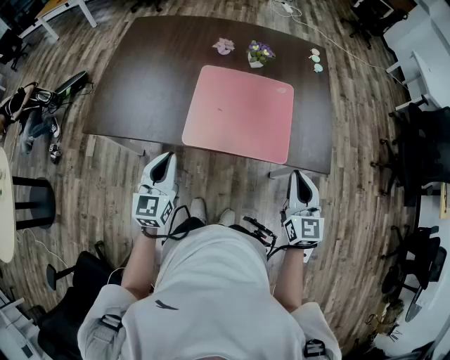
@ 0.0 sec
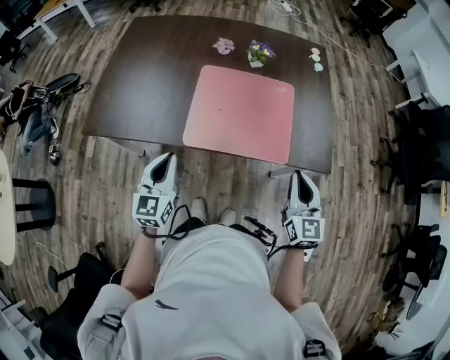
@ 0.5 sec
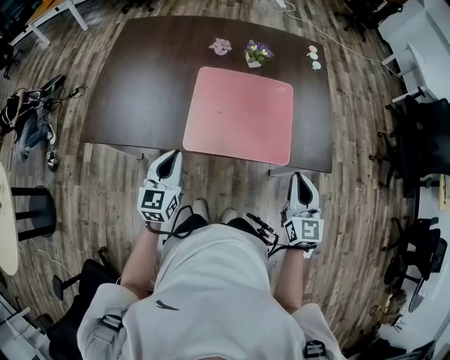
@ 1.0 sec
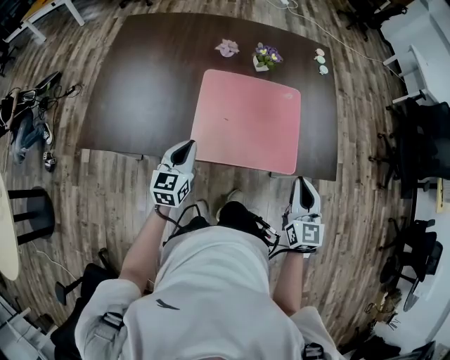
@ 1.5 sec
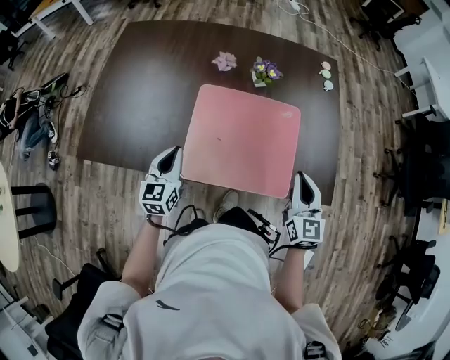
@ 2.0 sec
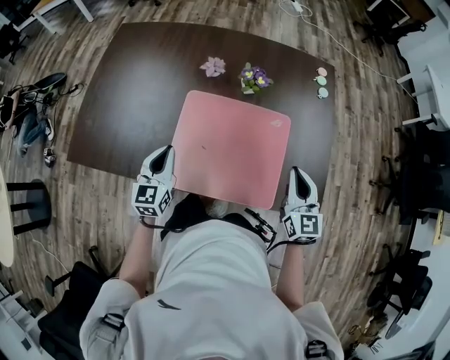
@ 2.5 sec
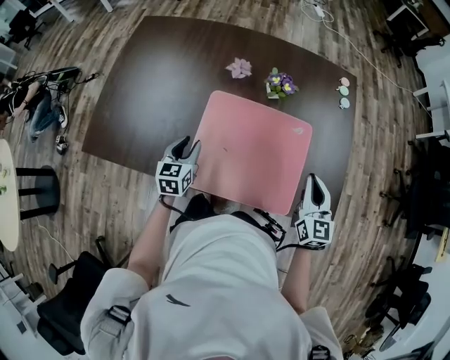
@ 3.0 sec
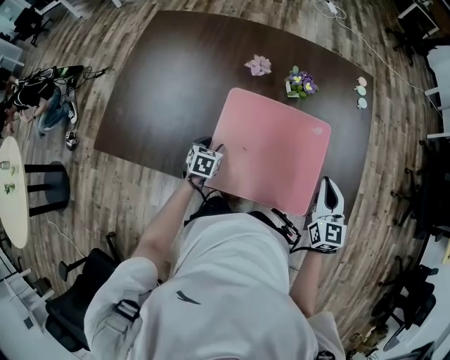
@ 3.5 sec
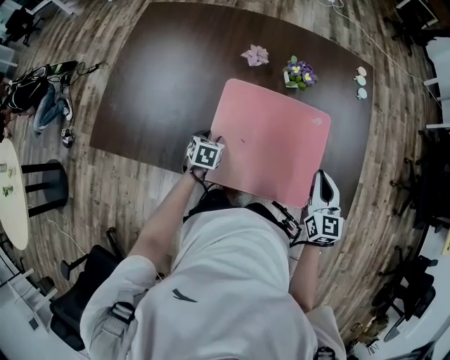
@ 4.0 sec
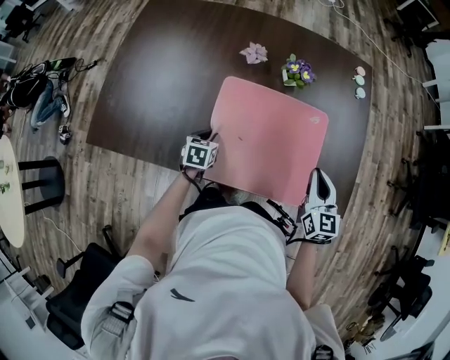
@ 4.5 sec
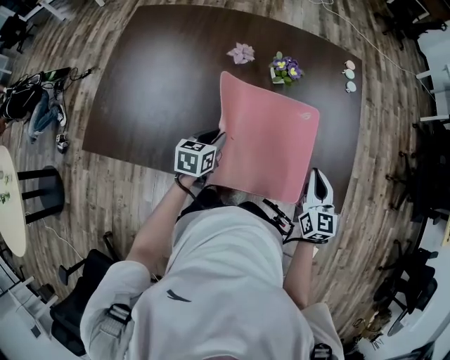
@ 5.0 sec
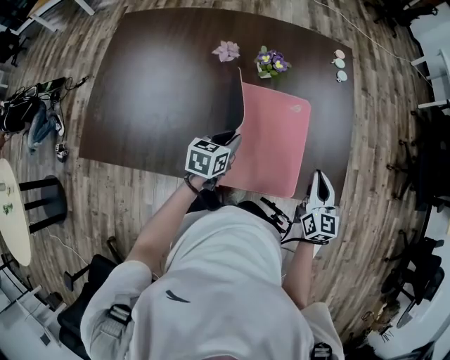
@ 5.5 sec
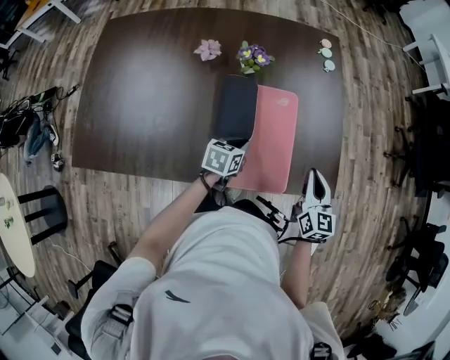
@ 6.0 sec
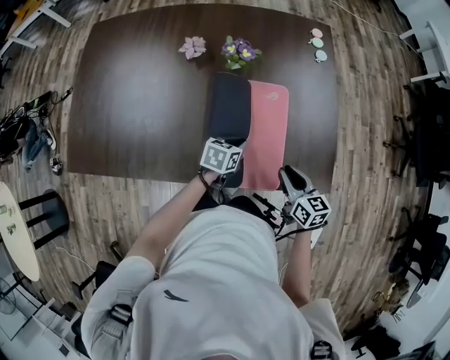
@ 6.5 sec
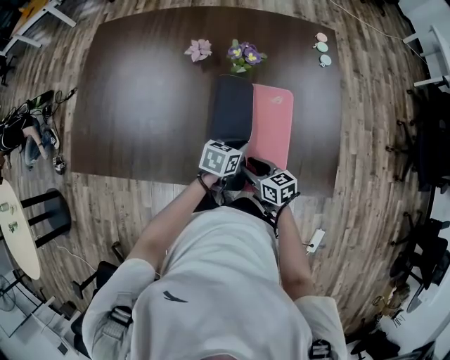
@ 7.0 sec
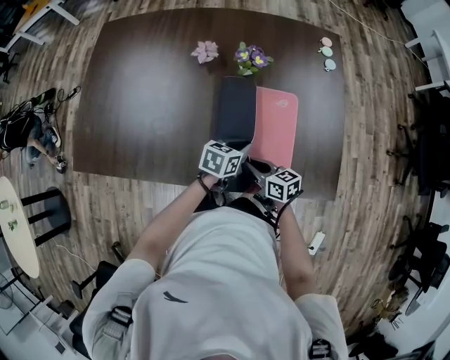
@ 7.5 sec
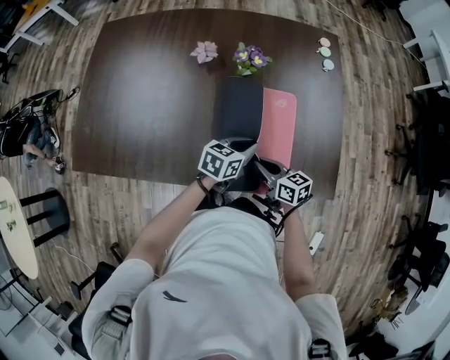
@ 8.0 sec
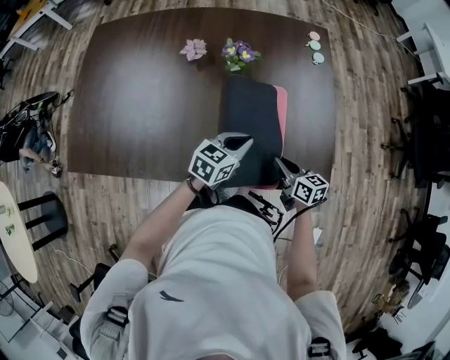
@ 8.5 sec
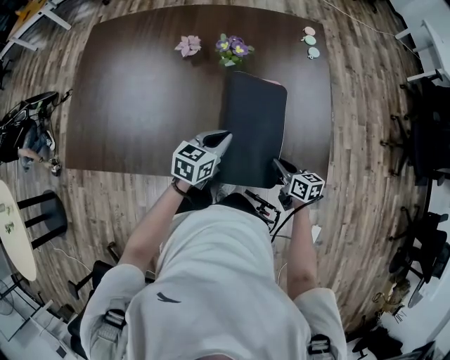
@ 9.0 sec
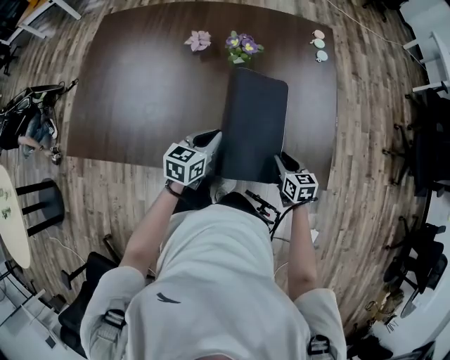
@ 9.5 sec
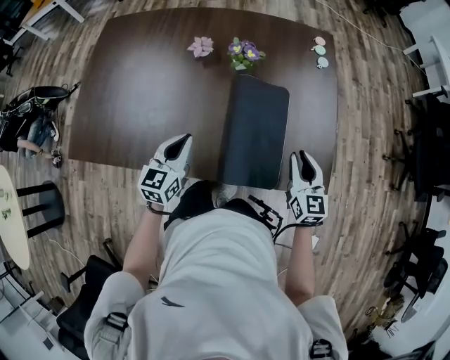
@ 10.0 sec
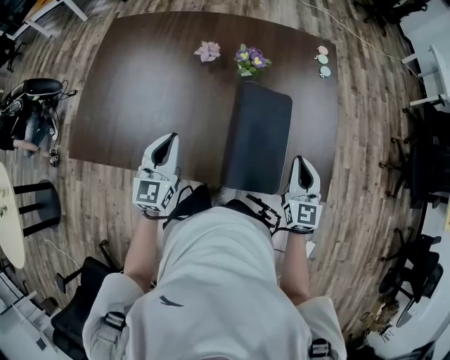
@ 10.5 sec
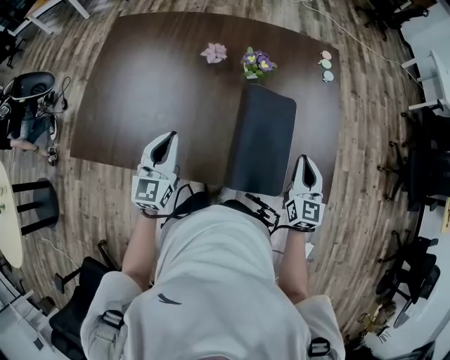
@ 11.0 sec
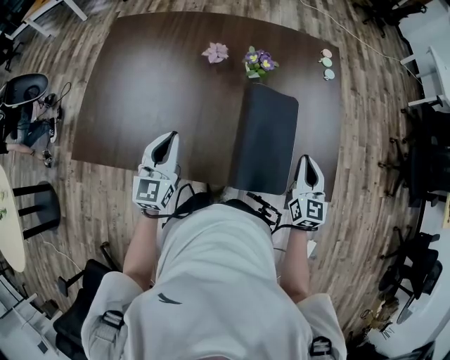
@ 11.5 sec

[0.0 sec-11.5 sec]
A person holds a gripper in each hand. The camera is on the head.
0.0 sec to 2.0 sec: The left gripper moves forward and downward, some 20 cm; the right gripper heads forward, covering approximately 15 cm.
2.0 sec to 4.0 sec: The right gripper travels forward by approximately 5 cm. The left gripper travels downward and forward by approximately 20 cm, angles its fingers downward, by some 40 degrees, and opens.
4.0 sec to 6.0 sec: The right gripper travels to the right by about 10 cm, while the left gripper travels to the right by approximately 25 cm, changes its angle by some 30 degrees, and closes up.
6.0 sec to 7.5 sec: The right gripper goes about 25 cm to the left and downward, changes its angle by roughly 50 degrees, and opens, then closes once more.
7.5 sec to 9.5 sec: The left gripper moves upward and to the left, approximately 10 cm, while the right gripper shifts some 15 cm to the right, and swivels about 30 degrees.
9.5 sec to 11.5 sec: The left gripper goes approximately 20 cm to the left and upward, and swivels approximately 40 degrees. Meanwhile the right gripper moves upward, about 15 cm, changes its angle by some 40 degrees, and closes.

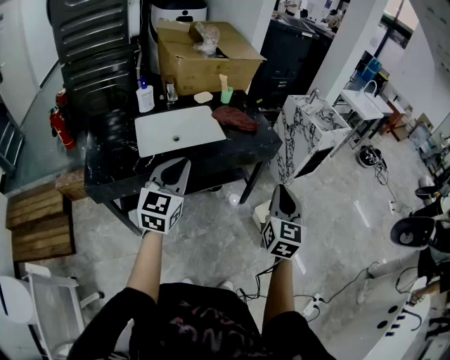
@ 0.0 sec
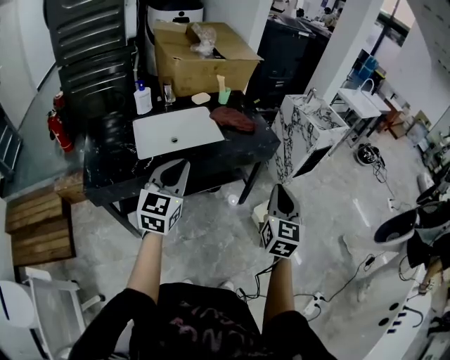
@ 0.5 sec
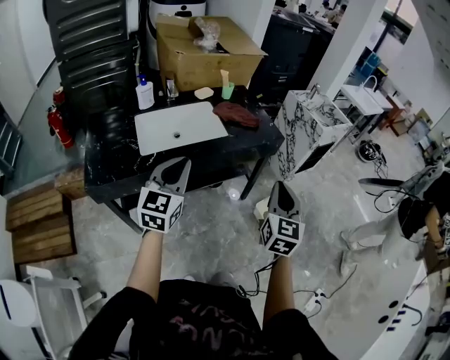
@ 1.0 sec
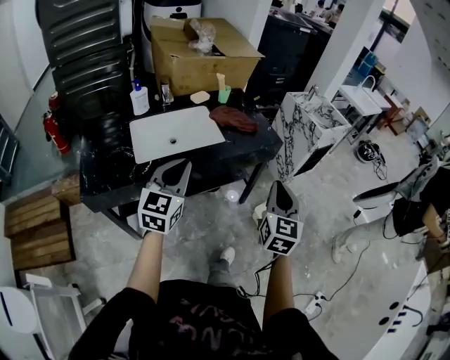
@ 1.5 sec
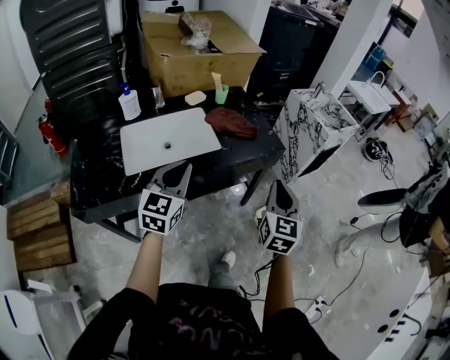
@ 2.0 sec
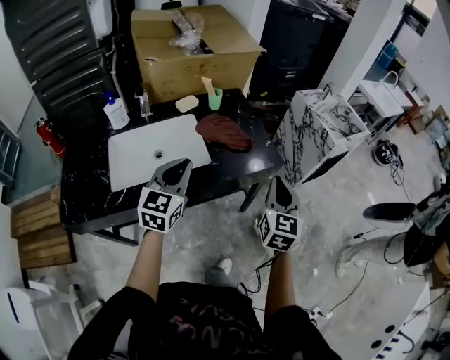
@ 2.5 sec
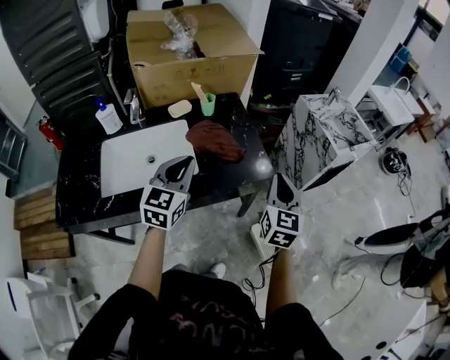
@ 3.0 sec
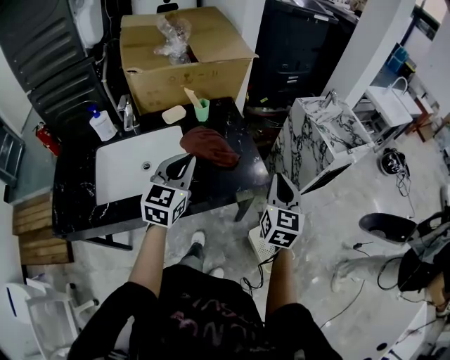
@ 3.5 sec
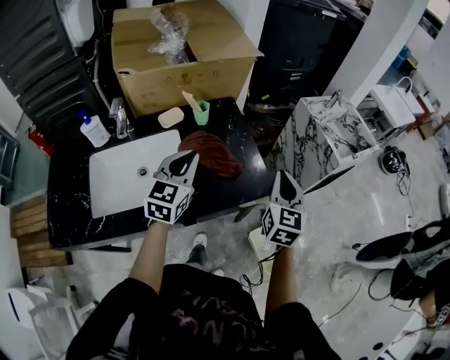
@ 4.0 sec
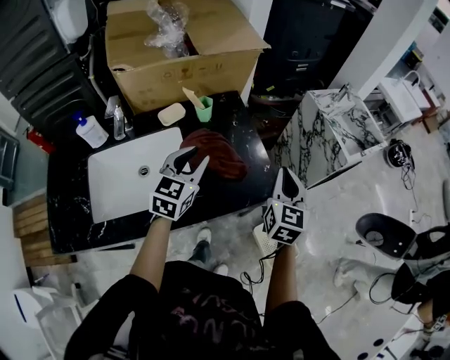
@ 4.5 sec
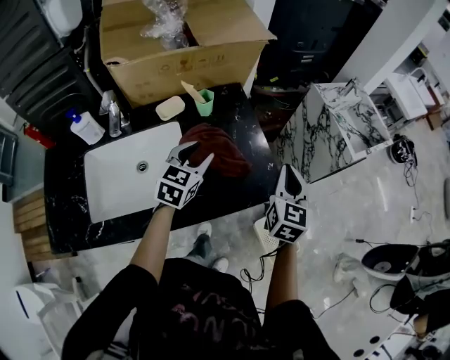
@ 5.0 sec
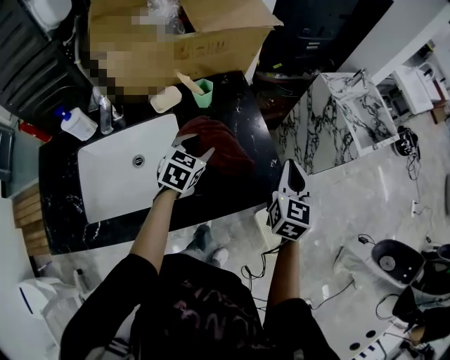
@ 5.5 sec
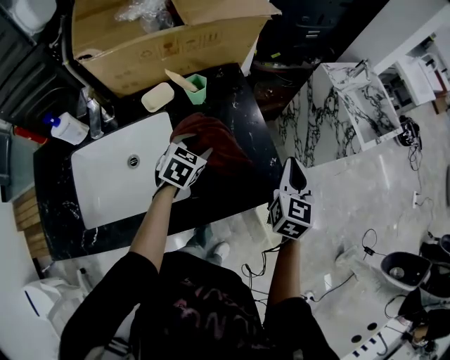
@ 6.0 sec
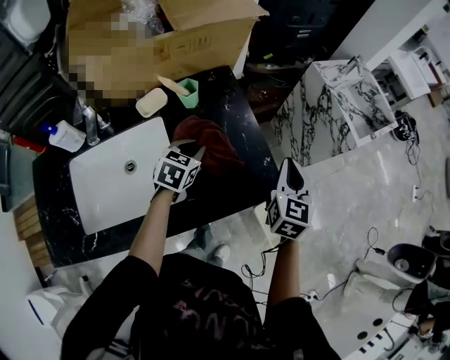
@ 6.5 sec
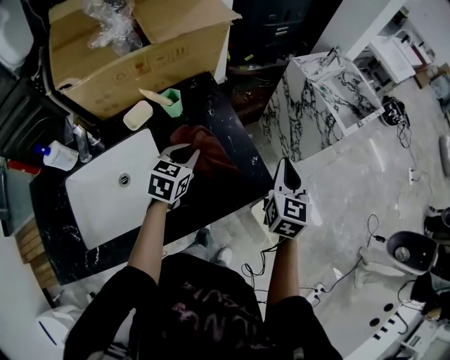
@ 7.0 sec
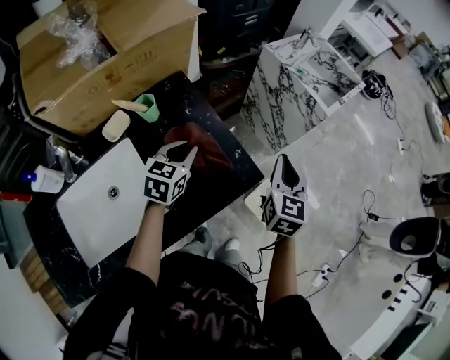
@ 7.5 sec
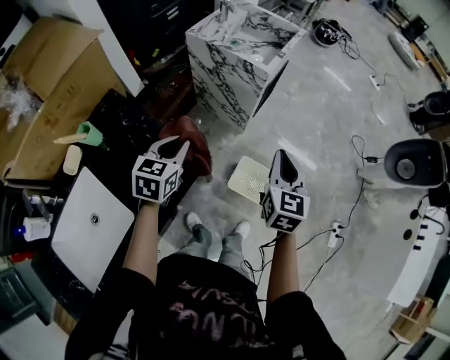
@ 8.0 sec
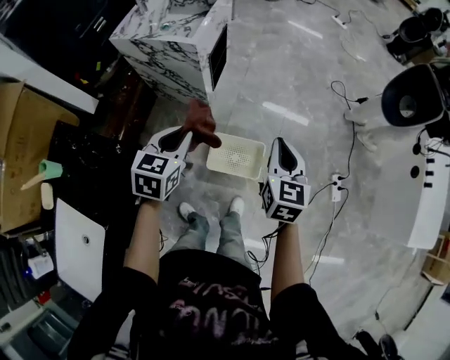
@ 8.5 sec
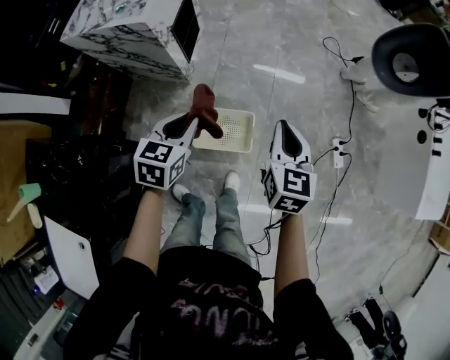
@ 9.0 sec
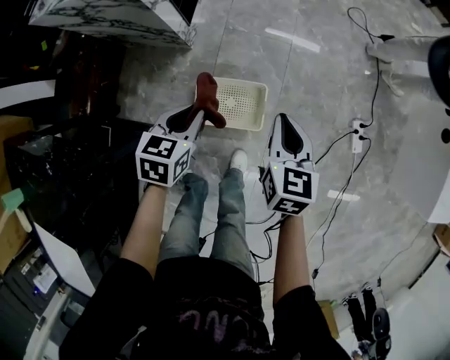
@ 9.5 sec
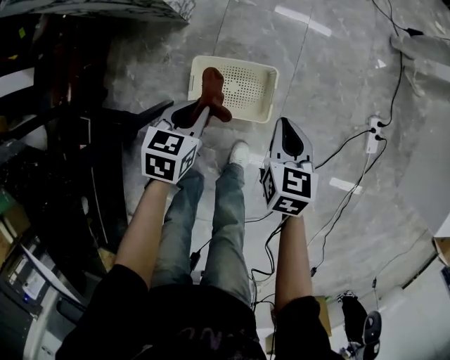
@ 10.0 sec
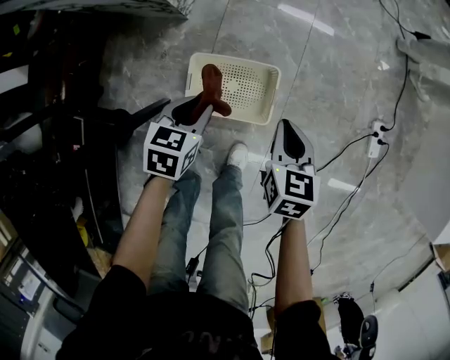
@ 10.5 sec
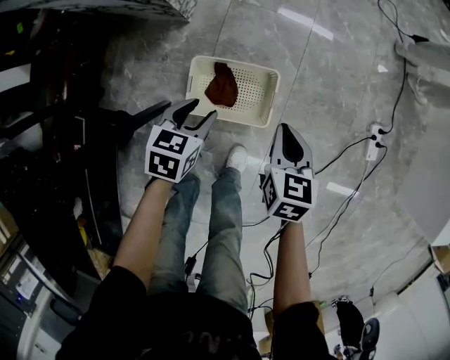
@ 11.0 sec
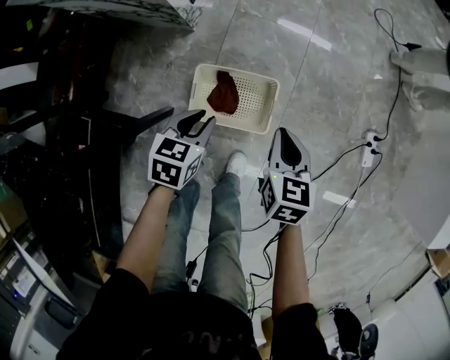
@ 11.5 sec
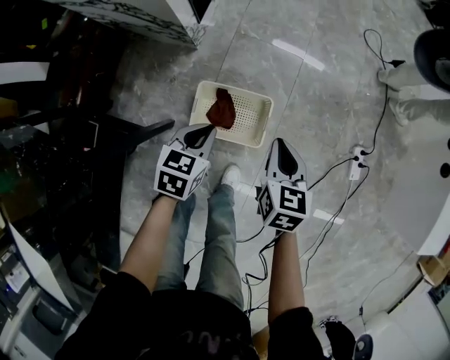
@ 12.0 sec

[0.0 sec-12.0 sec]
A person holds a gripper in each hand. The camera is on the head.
0.0 sec to 2.0 sec: Both grippers travel together forward, about 15 cm.
2.0 sec to 4.0 sec: The two grippers go about 30 cm forward.
4.0 sec to 6.0 sec: The left gripper heads downward and forward, covering approximately 25 cm, tilts its fingers roughly 30 degrees downward, and opens up. The right gripper shifts roughly 15 cm forward and downward.
6.0 sec to 8.0 sec: The left gripper ends up roughly 25 cm from where it was, swivels about 30 degrees, and closes up; the right gripper moves approximately 25 cm, and rotates approximately 30 degrees.
8.0 sec to 10.0 sec: Both grippers move downward and to the right, roughly 50 cm. The right gripper rotates roughly 30 degrees, while the left gripper turns by roughly 30 degrees.
10.0 sec to 12.0 sec: The two grippers go about 5 cm upward. The left gripper opens and closes again.

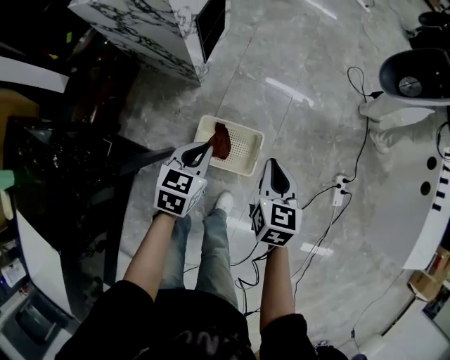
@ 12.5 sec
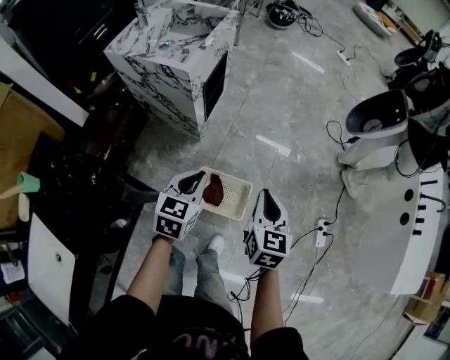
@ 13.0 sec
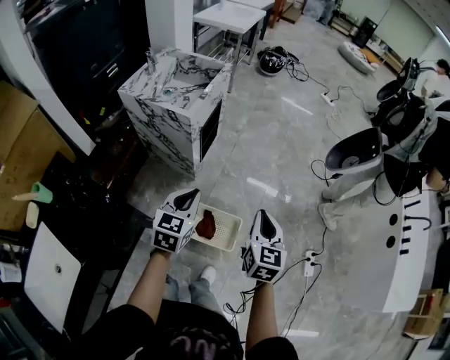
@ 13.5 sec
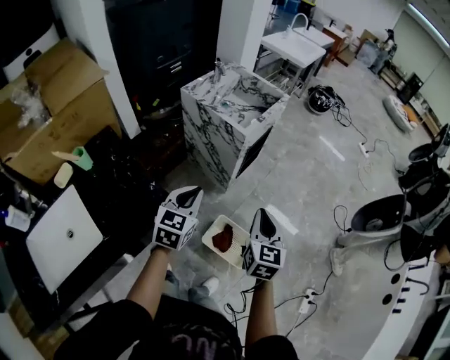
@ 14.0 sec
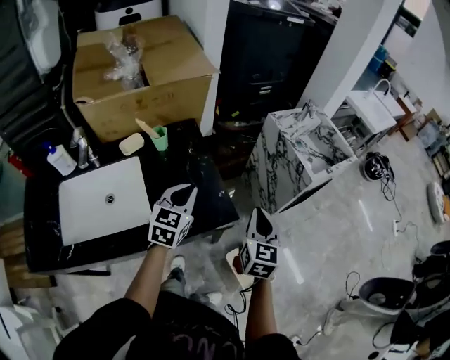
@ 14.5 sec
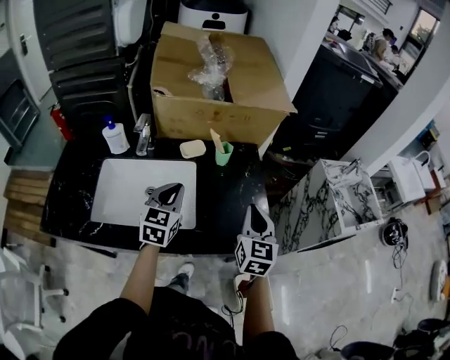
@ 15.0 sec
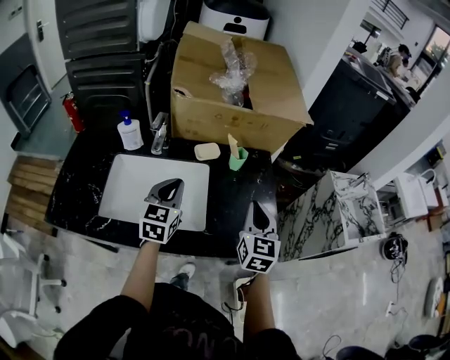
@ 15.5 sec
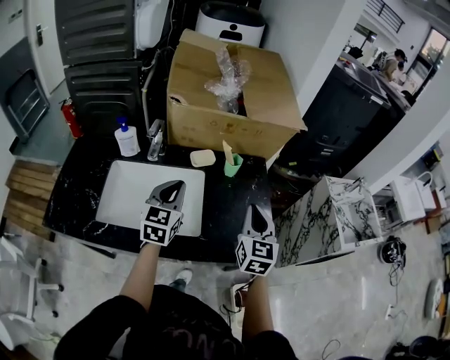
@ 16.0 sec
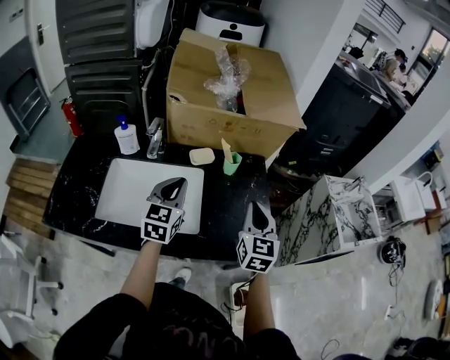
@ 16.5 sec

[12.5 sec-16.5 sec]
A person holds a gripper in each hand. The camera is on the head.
12.5 sec to 14.5 sec: The left gripper ends up approximately 50 cm from where it was, and changes its angle by about 60 degrees; the right gripper moves roughly 50 cm, and turns by roughly 50 degrees.
14.5 sec to 16.5 sec: The left gripper changes place by some 25 cm, and swivels some 30 degrees. Meanwhile the right gripper ends up approximately 25 cm from where it was, and changes its angle by approximately 30 degrees.
